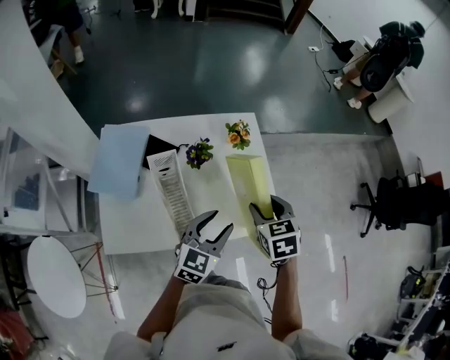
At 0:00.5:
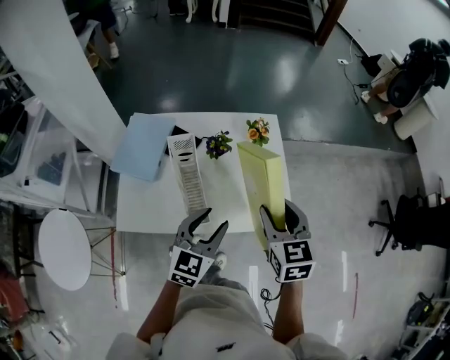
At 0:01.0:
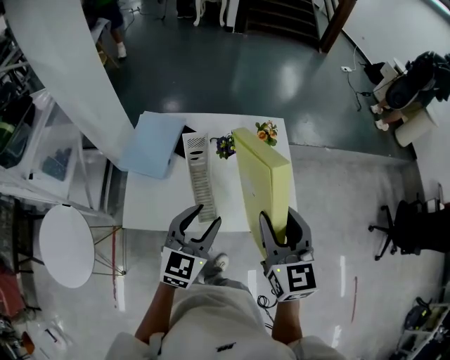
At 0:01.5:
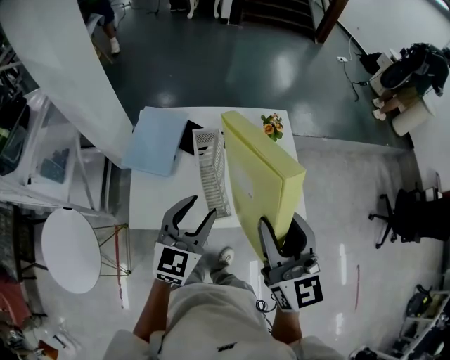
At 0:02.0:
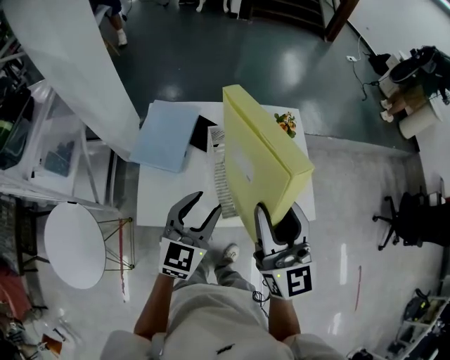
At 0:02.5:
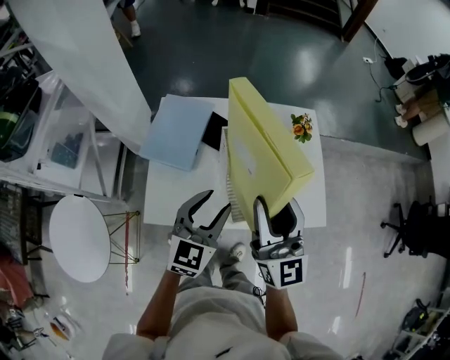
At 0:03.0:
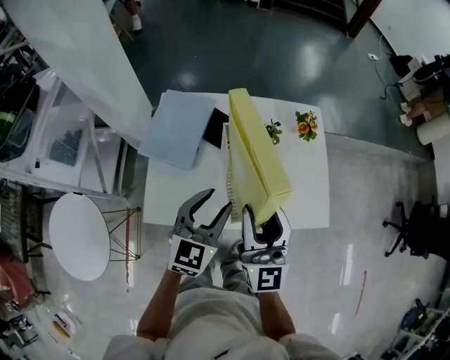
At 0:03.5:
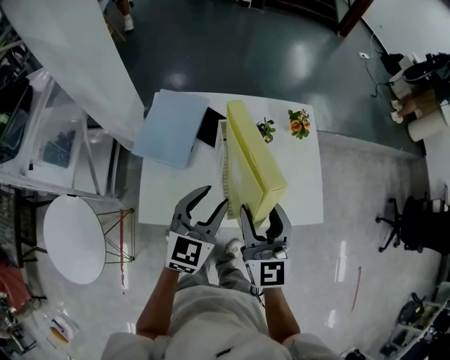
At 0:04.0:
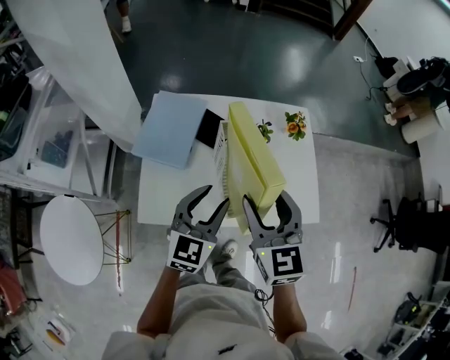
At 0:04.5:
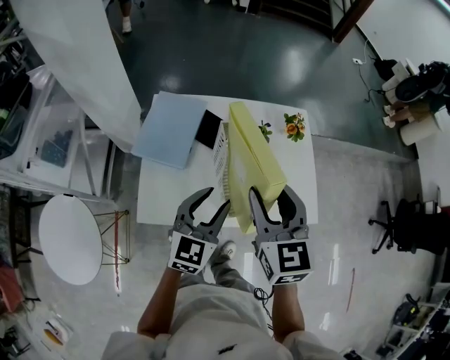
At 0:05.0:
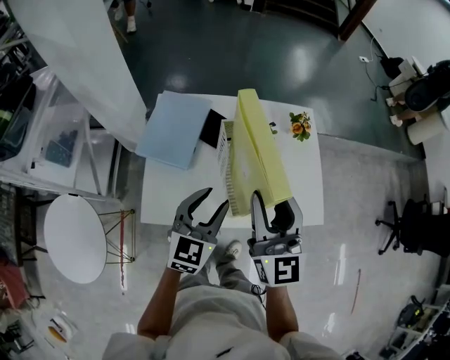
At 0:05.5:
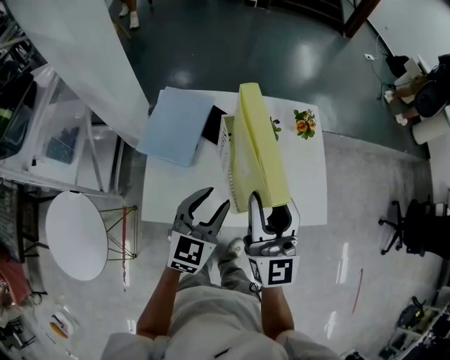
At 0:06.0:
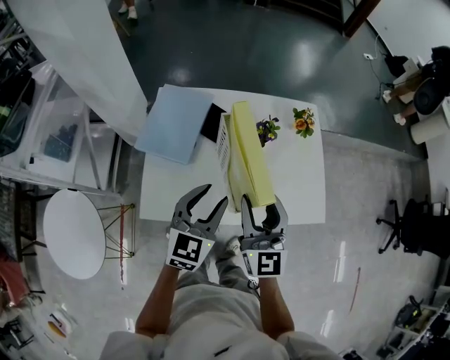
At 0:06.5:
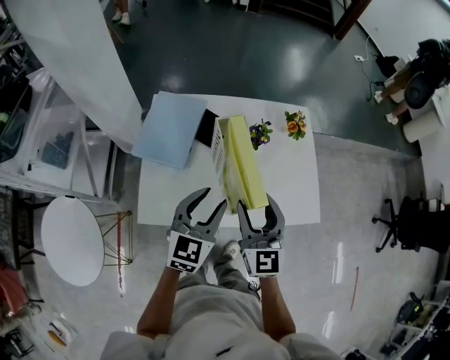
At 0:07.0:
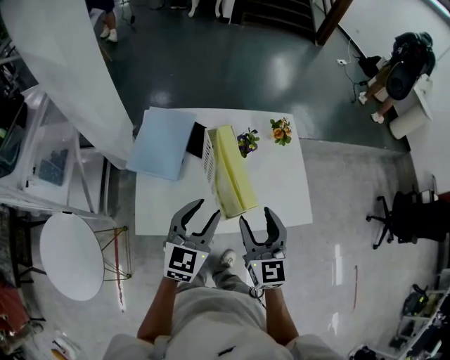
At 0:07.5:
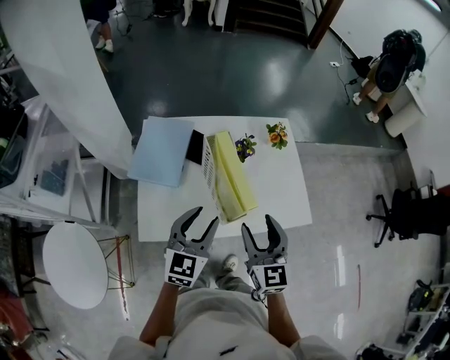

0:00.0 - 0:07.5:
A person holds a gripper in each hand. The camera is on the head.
0:00.0 - 0:02.0: The right gripper shifts some 25 cm to the left, upward and backward, and tilts its fingers roughly 50 degrees upward; the left gripper goes roughly 20 cm to the left.
0:02.0 - 0:04.0: The right gripper moves downward, approximately 5 cm, and changes its angle by roughly 30 degrees.
0:04.0 - 0:05.5: The right gripper angles its fingers upward, by approximately 30 degrees.
0:05.5 - 0:07.5: The right gripper moves downward and backward, roughly 10 cm, and changes its angle by about 20 degrees.

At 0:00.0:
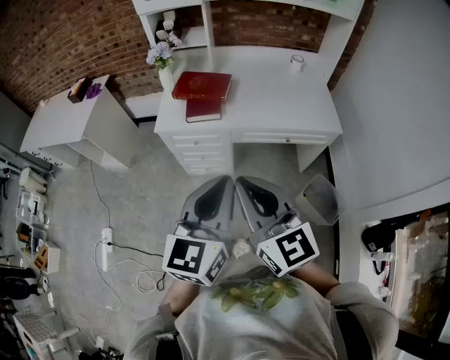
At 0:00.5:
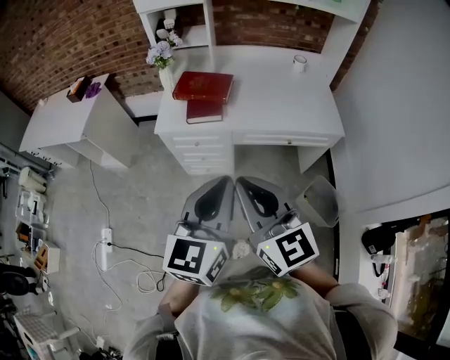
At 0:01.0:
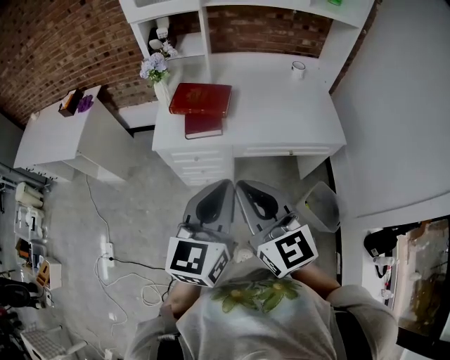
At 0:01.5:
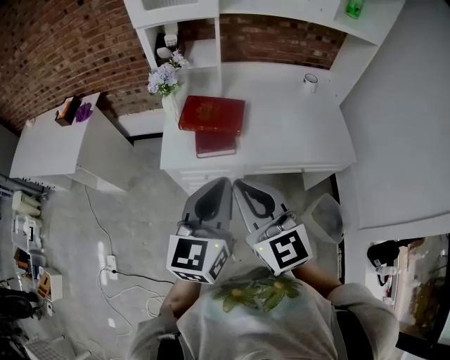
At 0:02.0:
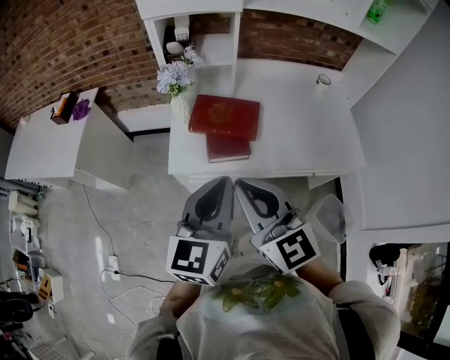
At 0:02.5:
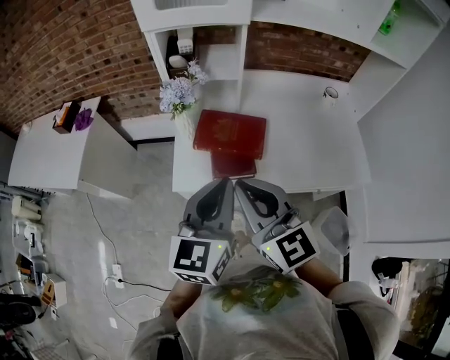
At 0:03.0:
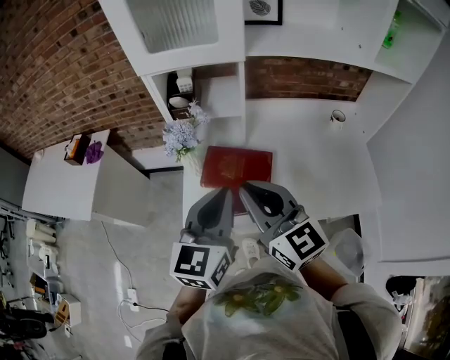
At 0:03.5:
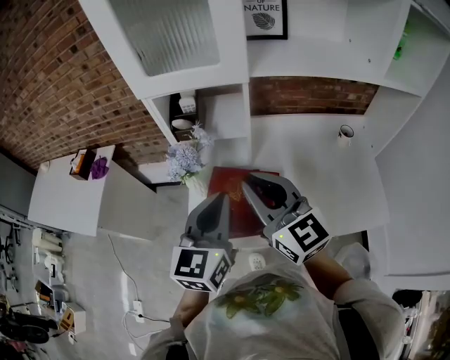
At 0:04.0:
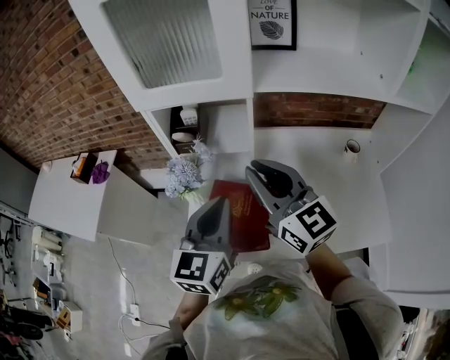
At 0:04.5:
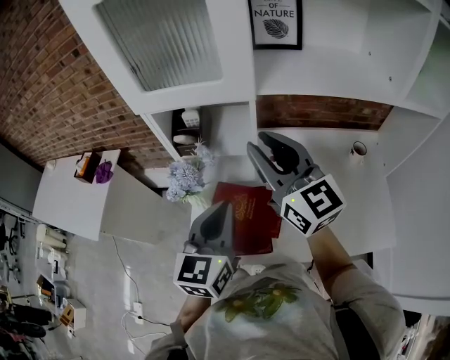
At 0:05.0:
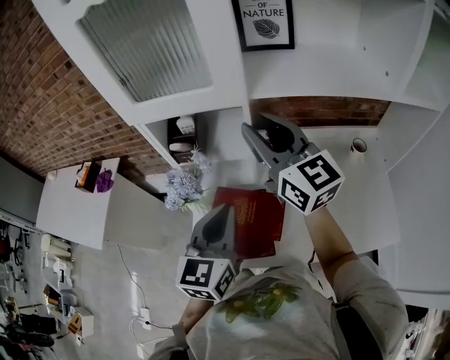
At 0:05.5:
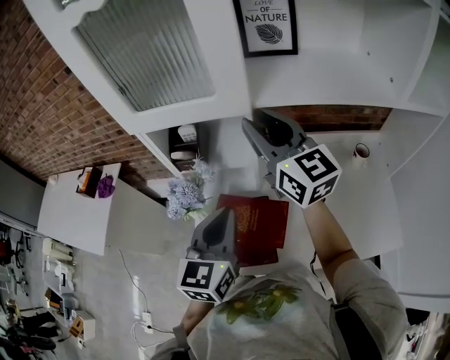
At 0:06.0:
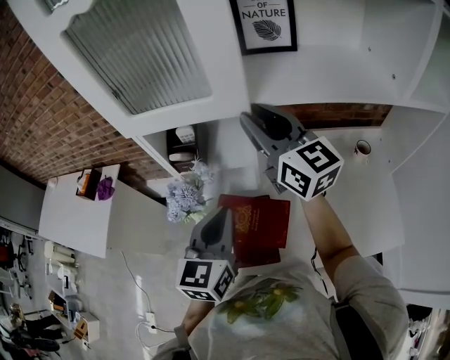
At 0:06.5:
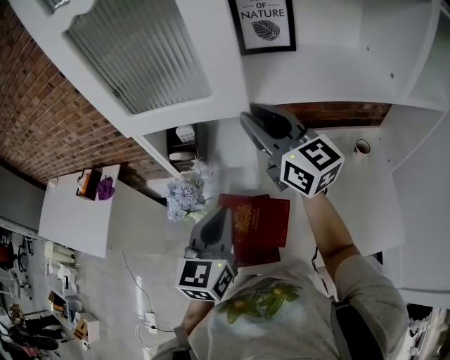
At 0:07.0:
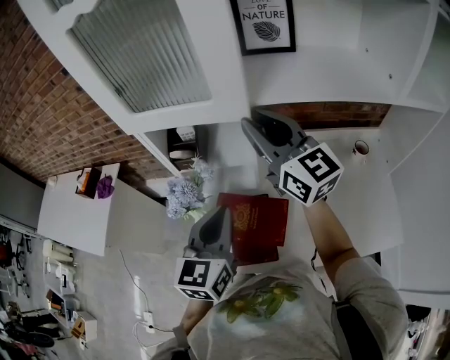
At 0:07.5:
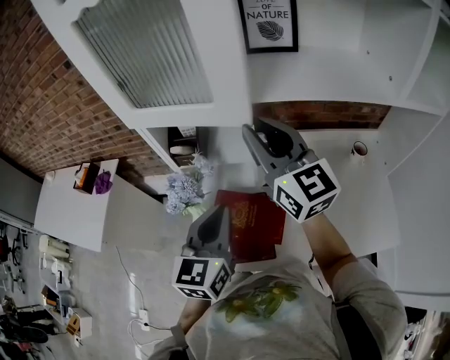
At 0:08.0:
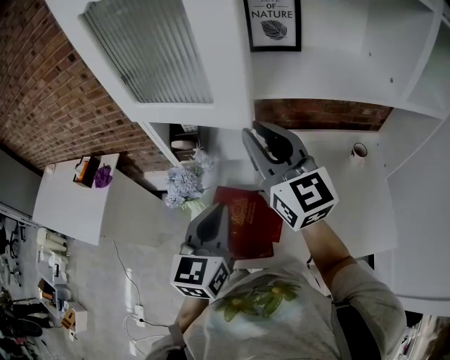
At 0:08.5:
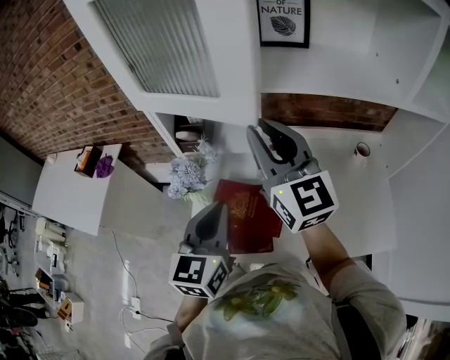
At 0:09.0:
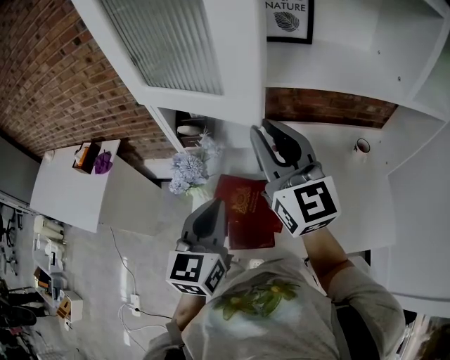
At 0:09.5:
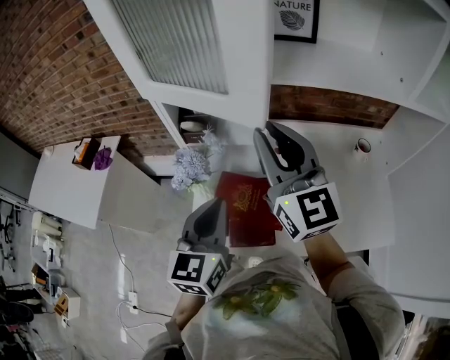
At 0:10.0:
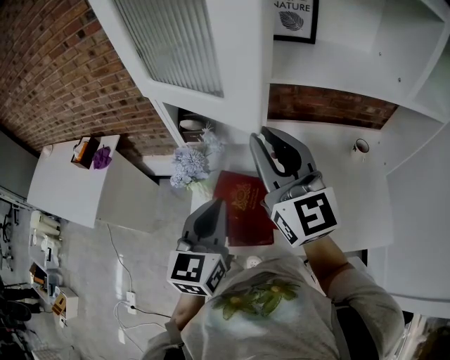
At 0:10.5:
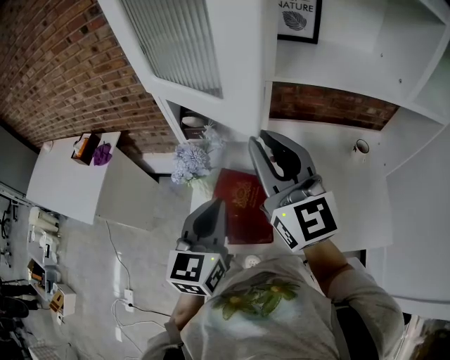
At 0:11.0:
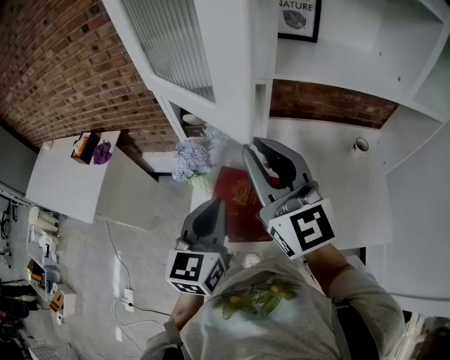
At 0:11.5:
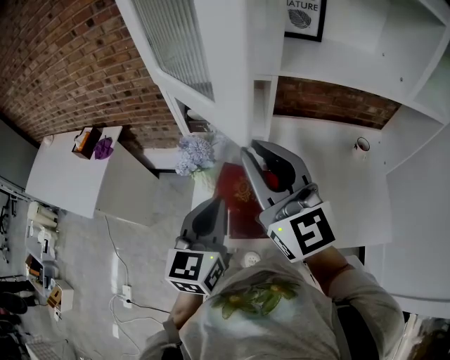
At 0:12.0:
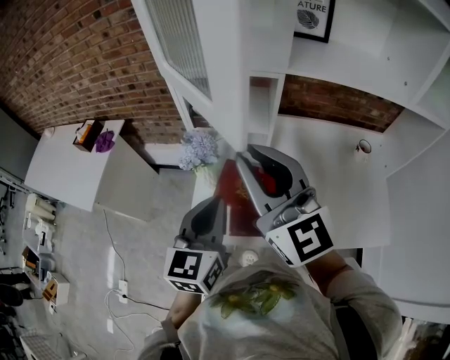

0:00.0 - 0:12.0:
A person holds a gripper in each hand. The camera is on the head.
0:00.0 - 0:02.0: The two grippers go about 30 cm forward and to the left.
0:02.0 - 0:04.0: Both grippers move forward, about 30 cm.
0:04.0 - 0:06.0: The right gripper travels forward by approximately 15 cm, while the left gripper shifts roughly 5 cm forward.
0:06.0 - 0:08.0: The right gripper goes about 5 cm backward.
0:08.0 - 0:10.0: The right gripper is displaced backward by roughly 5 cm.
0:10.0 - 0:12.0: The right gripper travels to the left and backward by approximately 10 cm.

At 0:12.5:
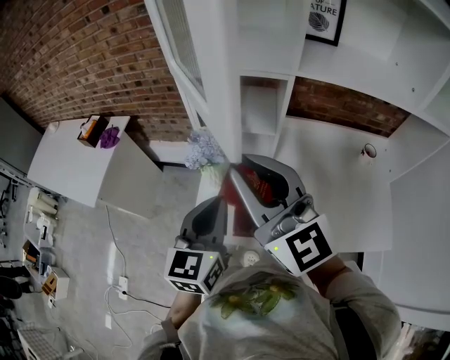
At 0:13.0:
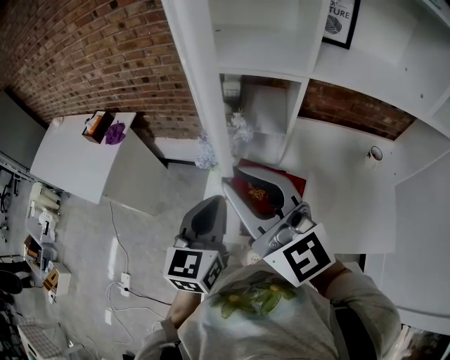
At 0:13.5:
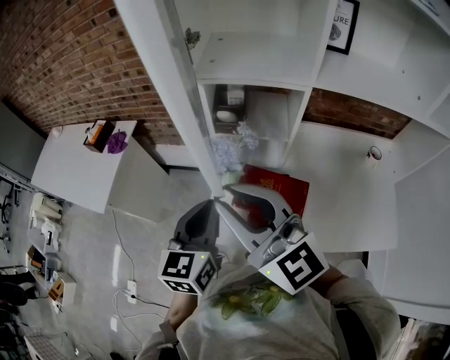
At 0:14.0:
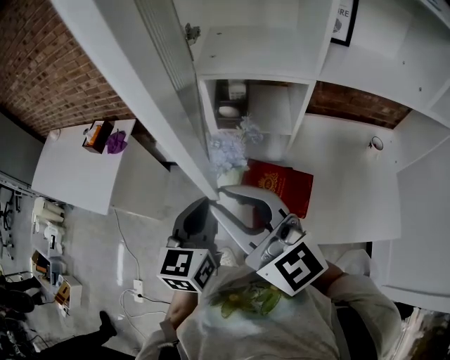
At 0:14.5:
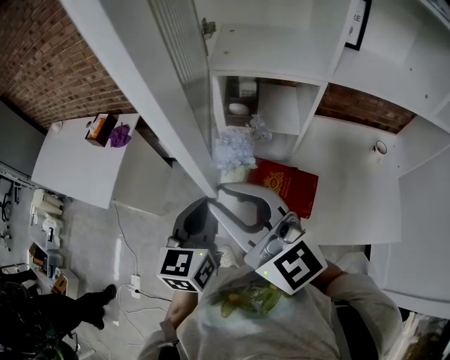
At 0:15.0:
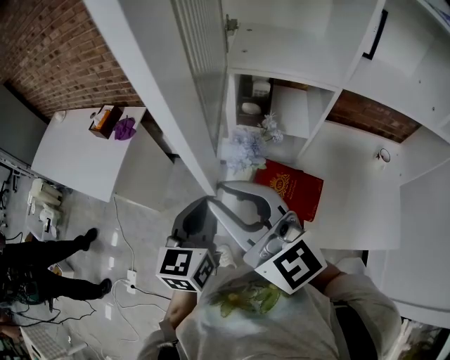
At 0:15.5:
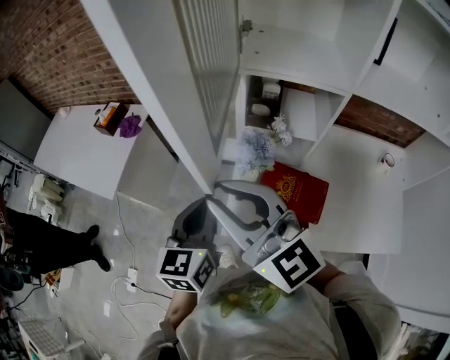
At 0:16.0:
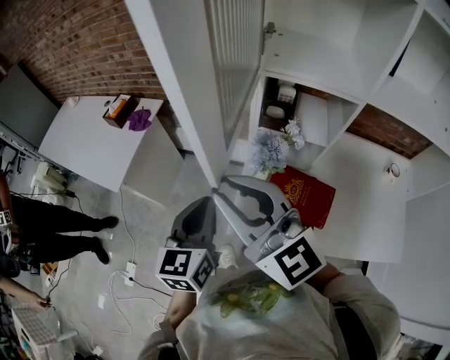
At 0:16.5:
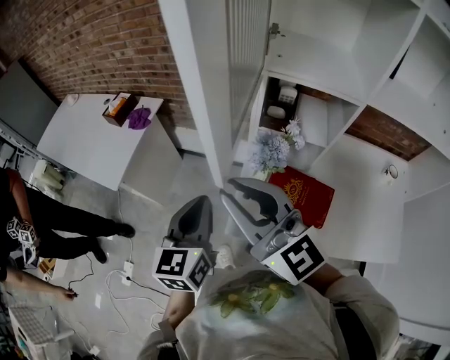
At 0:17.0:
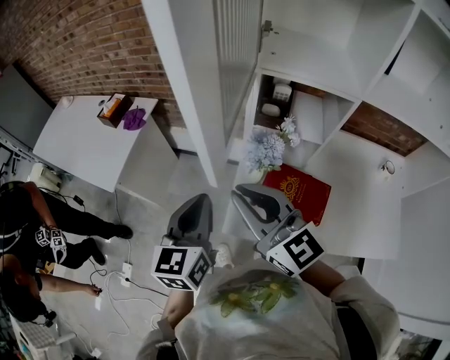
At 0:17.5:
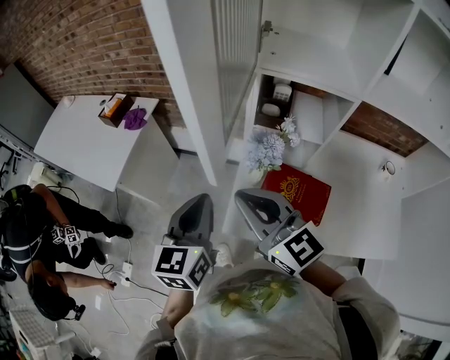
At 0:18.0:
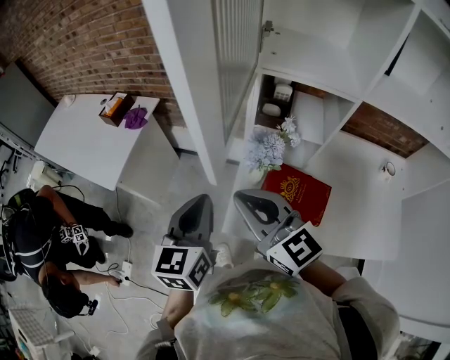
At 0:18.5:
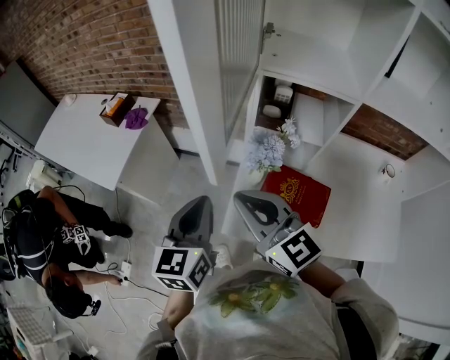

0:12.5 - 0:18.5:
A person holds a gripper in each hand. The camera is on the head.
0:12.5 - 0:14.5: The two grippers go roughly 10 cm to the left.
0:14.5 - 0:16.5: The right gripper travels to the left by approximately 5 cm. The left gripper goes some 10 cm to the left.
0:16.5 - 0:18.5: The right gripper heads downward, covering about 5 cm.

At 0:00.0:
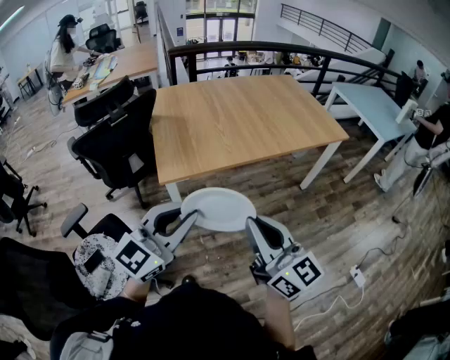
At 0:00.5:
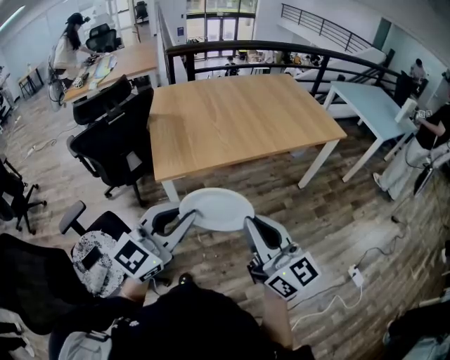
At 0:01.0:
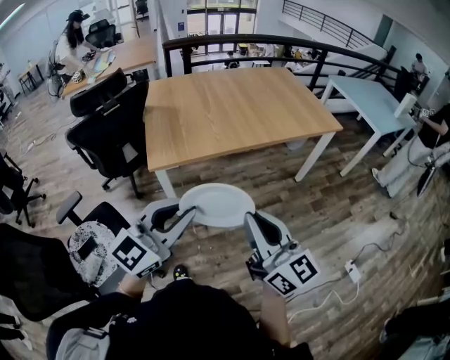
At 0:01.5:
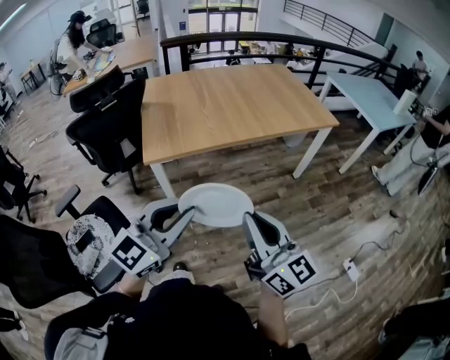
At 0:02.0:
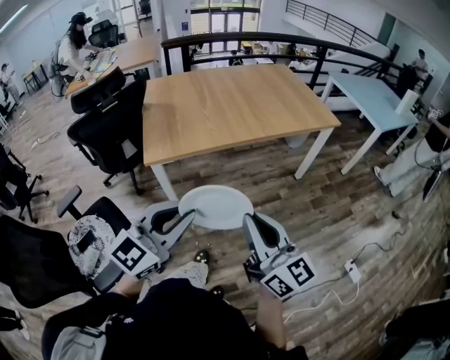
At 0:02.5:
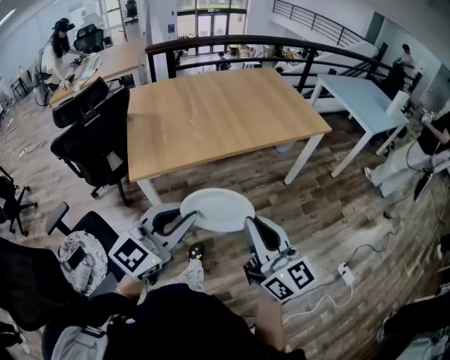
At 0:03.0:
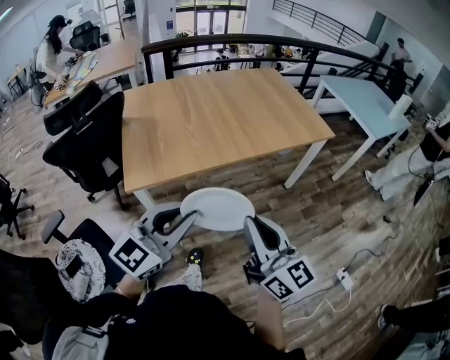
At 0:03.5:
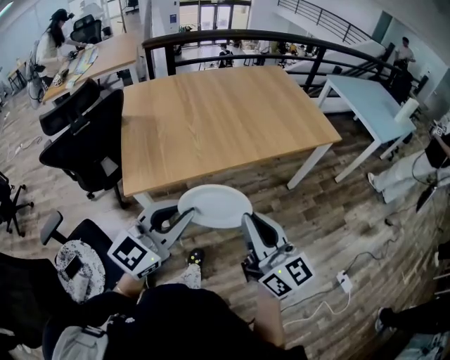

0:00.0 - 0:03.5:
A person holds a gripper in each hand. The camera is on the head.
0:00.0 - 0:02.0: Both grippers travel together to the right and backward, about 15 cm.
0:02.0 - 0:03.5: Both grippers travel together forward, approximately 20 cm.
